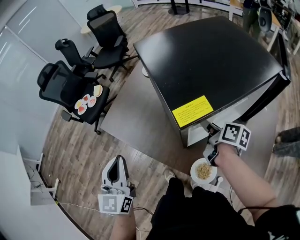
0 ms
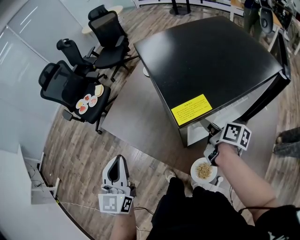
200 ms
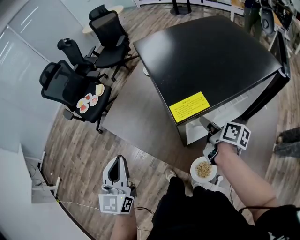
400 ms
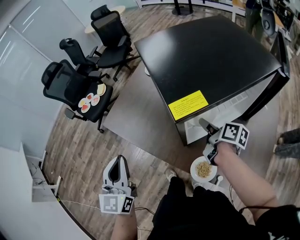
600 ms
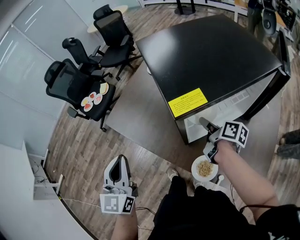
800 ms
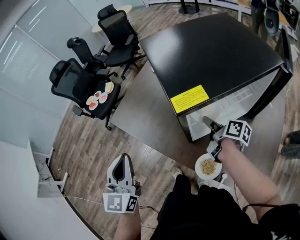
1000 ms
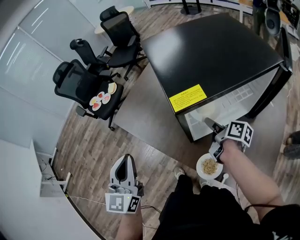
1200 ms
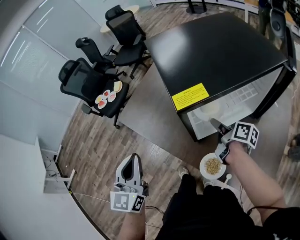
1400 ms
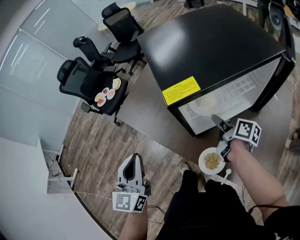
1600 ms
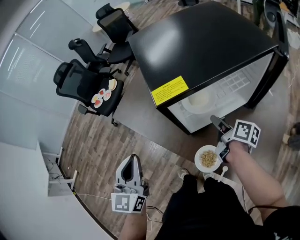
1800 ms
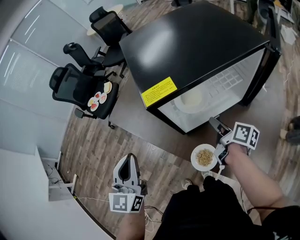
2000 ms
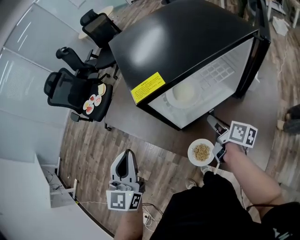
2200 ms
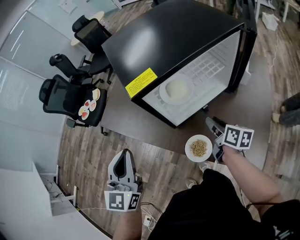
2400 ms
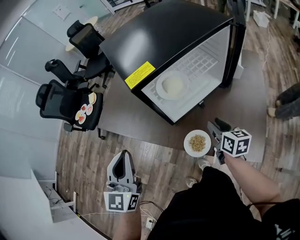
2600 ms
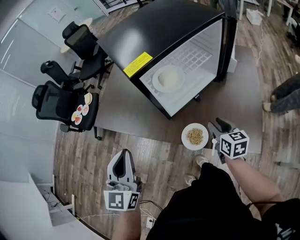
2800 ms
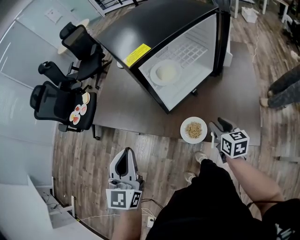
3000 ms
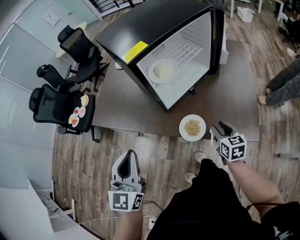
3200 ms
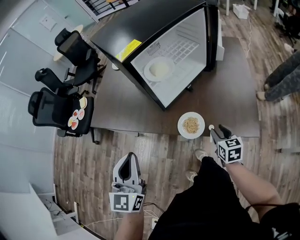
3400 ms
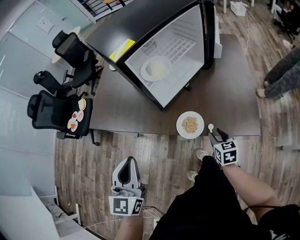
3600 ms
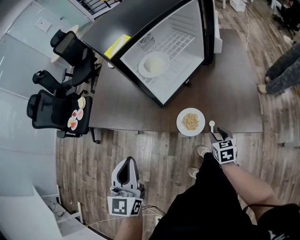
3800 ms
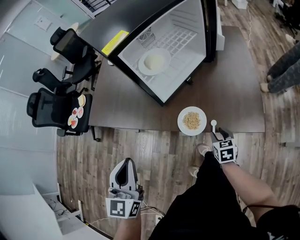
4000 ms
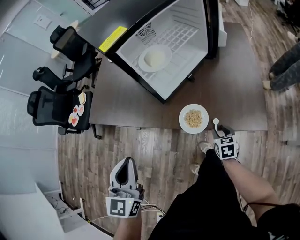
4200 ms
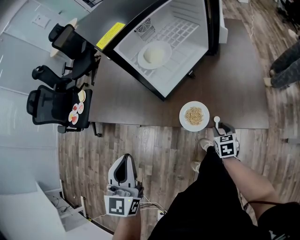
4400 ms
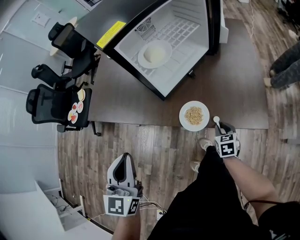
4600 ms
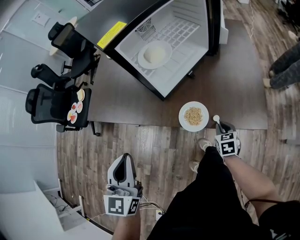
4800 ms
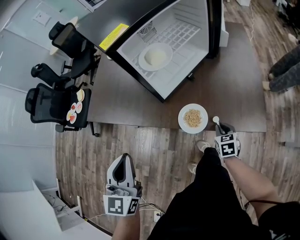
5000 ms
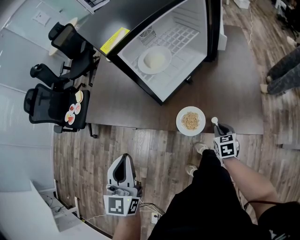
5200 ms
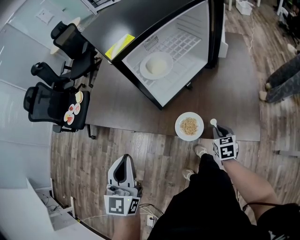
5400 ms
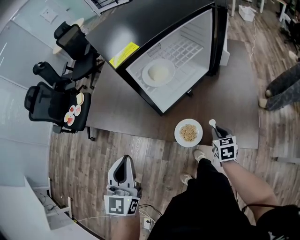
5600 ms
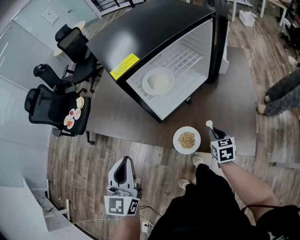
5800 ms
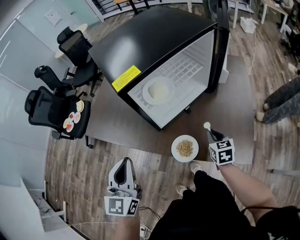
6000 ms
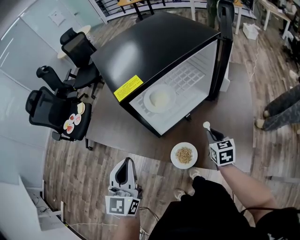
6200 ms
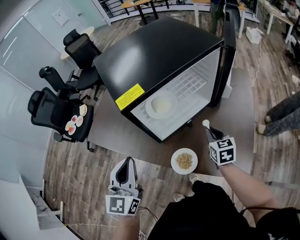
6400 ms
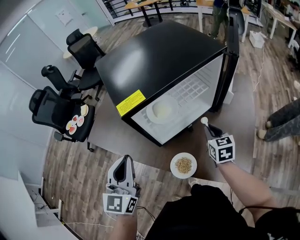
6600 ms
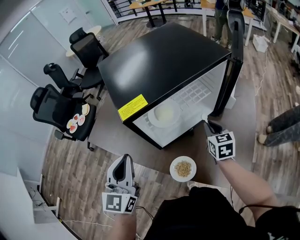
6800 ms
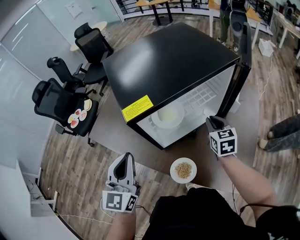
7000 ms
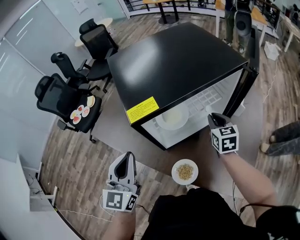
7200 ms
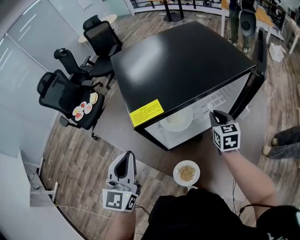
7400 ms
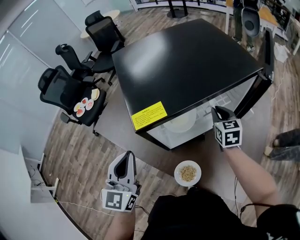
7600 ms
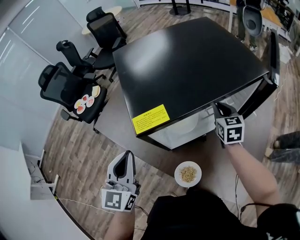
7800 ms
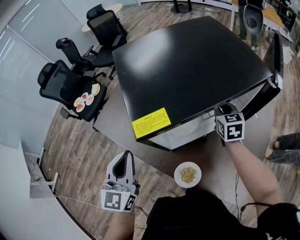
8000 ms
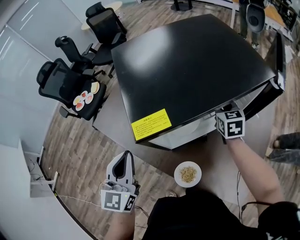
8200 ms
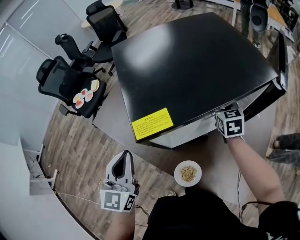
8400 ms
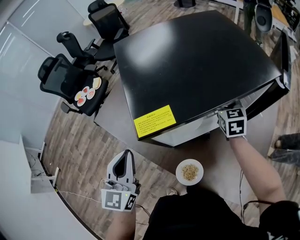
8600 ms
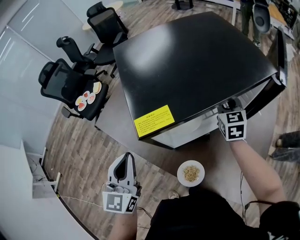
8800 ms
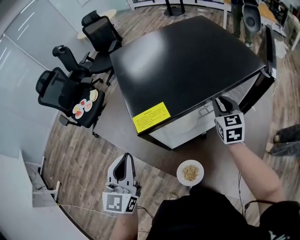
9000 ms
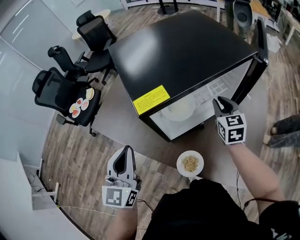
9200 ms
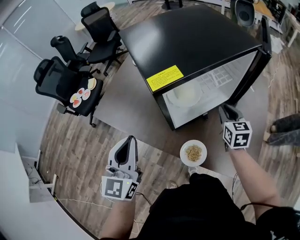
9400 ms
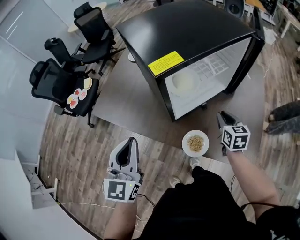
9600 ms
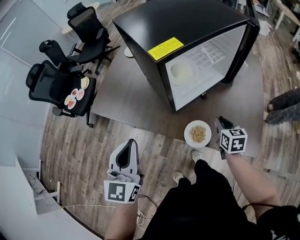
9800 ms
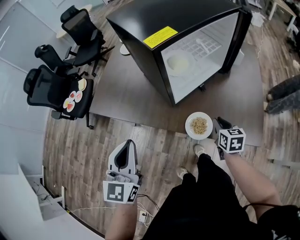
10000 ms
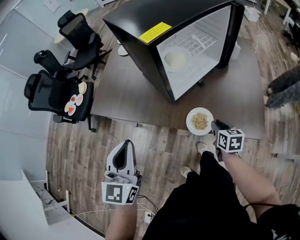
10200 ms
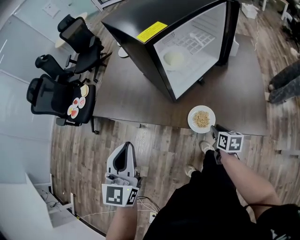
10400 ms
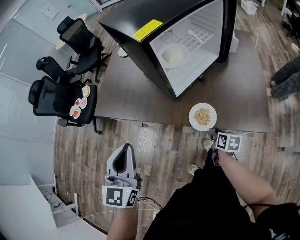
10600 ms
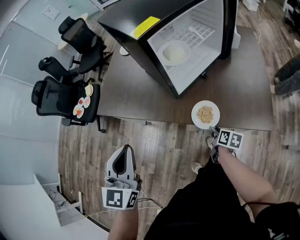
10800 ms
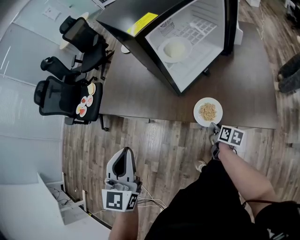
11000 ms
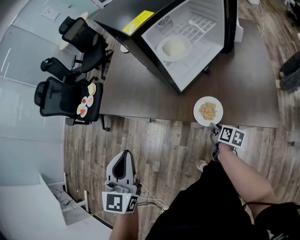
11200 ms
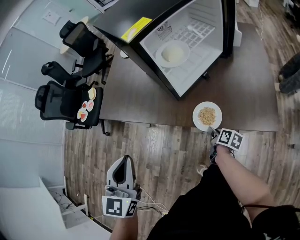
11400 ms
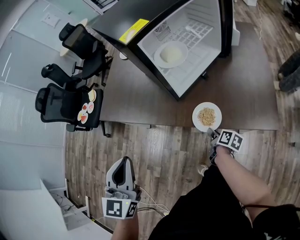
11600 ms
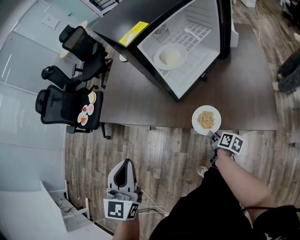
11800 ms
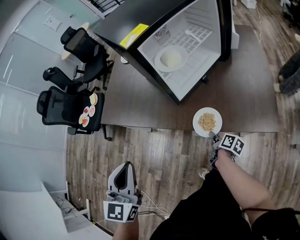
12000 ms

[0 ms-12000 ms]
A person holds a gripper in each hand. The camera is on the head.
0 ms to 1600 ms: The left gripper heads backward, covering about 5 cm, while the right gripper shifts by roughly 5 cm.
1600 ms to 3000 ms: The left gripper moves backward, roughly 10 cm. Meanwhile the right gripper goes approximately 20 cm backward, and swivels approximately 50 degrees.
3000 ms to 4400 ms: The right gripper travels downward and backward by about 20 cm, and swivels approximately 20 degrees. The left gripper heads downward, covering roughly 5 cm.
4400 ms to 6000 ms: The right gripper travels upward and forward by approximately 20 cm, and closes, while the left gripper shifts about 10 cm forward.
6000 ms to 7600 ms: The right gripper shifts approximately 30 cm forward and upward. Meanwhile the left gripper heads forward, covering approximately 10 cm.
7600 ms to 9000 ms: The grippers make only small movements.
9000 ms to 10400 ms: The right gripper moves backward and downward, roughly 40 cm, and twists some 40 degrees clockwise, seen from behind; the left gripper heads backward, covering approximately 15 cm.
10400 ms to 12000 ms: The right gripper goes roughly 10 cm downward, and rolls clockwise, seen from behind, by about 40 degrees.

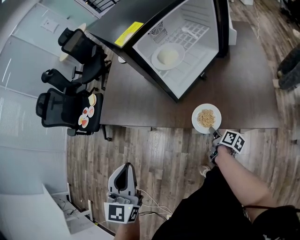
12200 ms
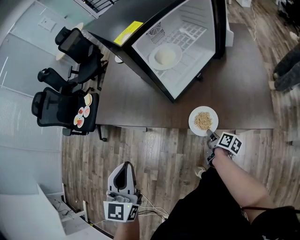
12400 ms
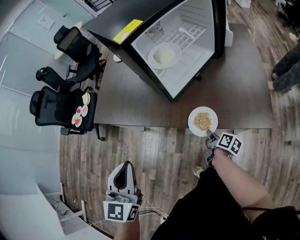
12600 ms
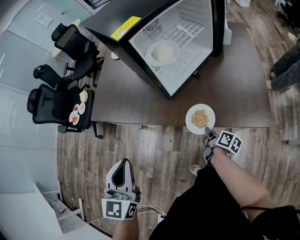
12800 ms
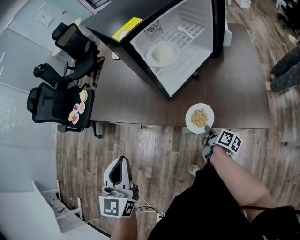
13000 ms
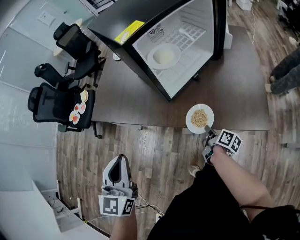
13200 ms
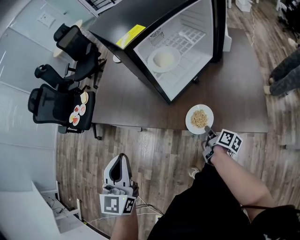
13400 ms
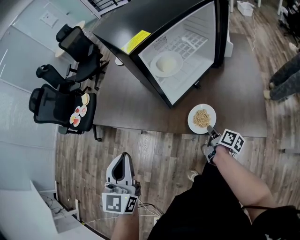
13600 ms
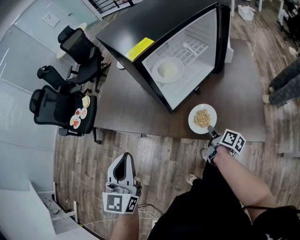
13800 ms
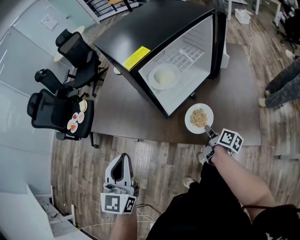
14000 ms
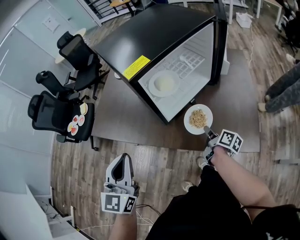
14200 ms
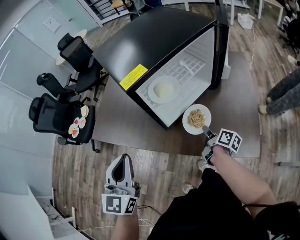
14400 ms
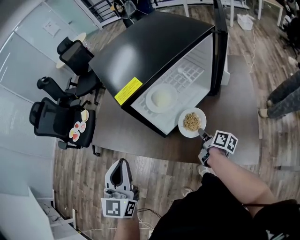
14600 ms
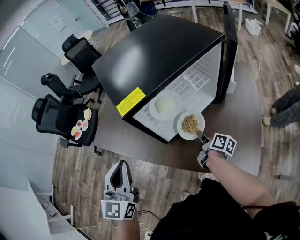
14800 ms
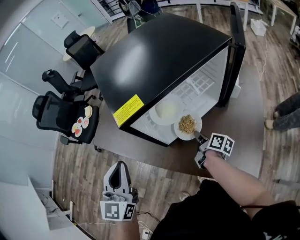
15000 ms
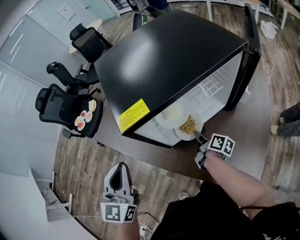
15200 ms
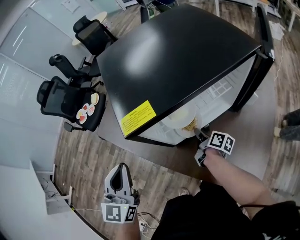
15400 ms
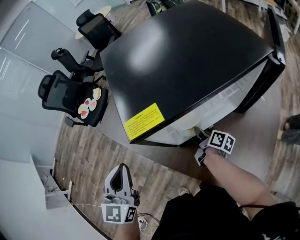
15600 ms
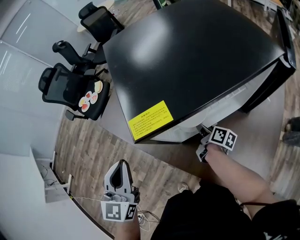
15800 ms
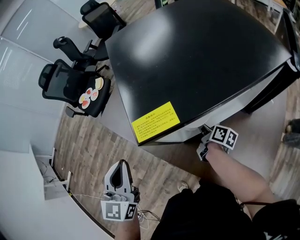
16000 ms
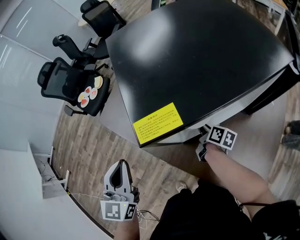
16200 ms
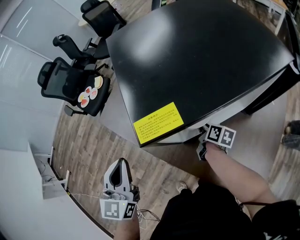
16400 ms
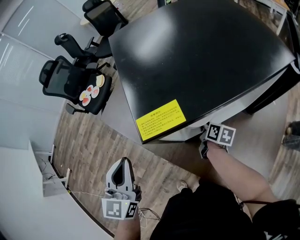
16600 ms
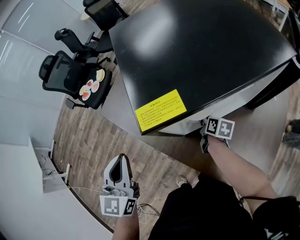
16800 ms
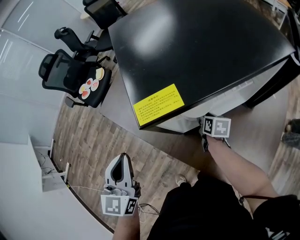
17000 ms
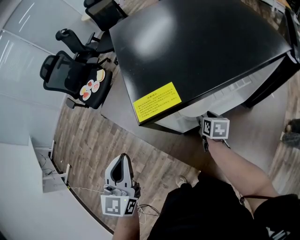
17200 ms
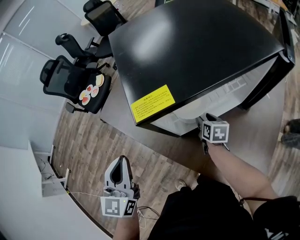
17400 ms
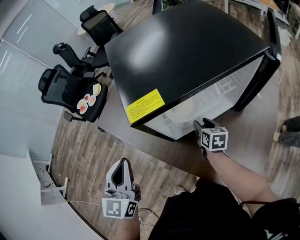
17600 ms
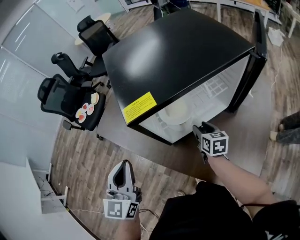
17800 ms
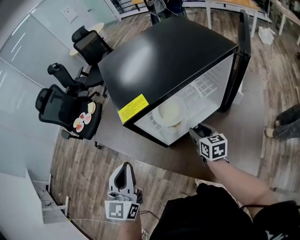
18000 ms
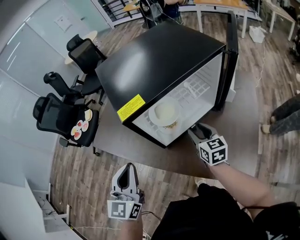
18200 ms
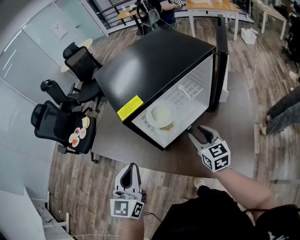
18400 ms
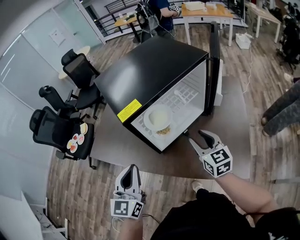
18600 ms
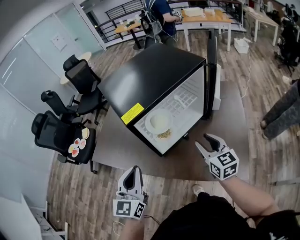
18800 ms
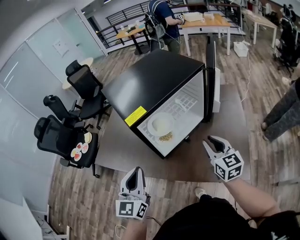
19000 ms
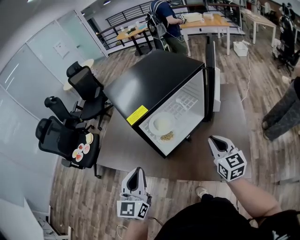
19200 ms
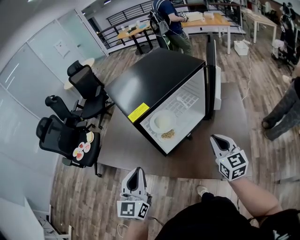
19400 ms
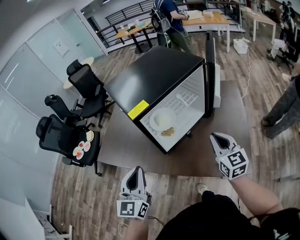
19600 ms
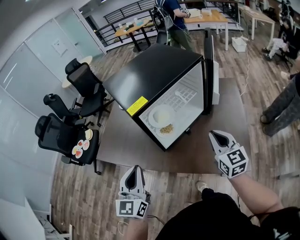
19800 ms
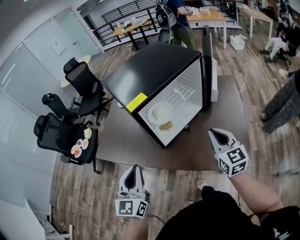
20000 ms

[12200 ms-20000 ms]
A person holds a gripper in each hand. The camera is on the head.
12200 ms to 13800 ms: The left gripper ends up some 5 cm from where it was. Meanwhile the right gripper goes approximately 10 cm upward, and closes.
13800 ms to 15400 ms: The right gripper is displaced forward by some 25 cm, and turns by about 20 degrees, while the left gripper heads forward and to the right, covering about 15 cm.
15400 ms to 16800 ms: The right gripper shifts by some 5 cm, and rotates some 30 degrees.
16800 ms to 18400 ms: The left gripper shifts approximately 10 cm to the right and backward, and rotates some 20 degrees. The right gripper heads upward and backward, covering some 25 cm, swivels approximately 50 degrees, and opens.
18400 ms to 20000 ms: The left gripper is displaced backward by about 5 cm. The right gripper heads backward, upward and to the right, covering about 15 cm, and closes.

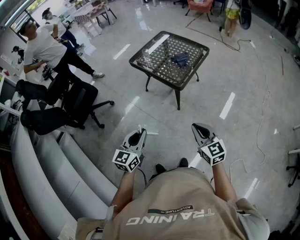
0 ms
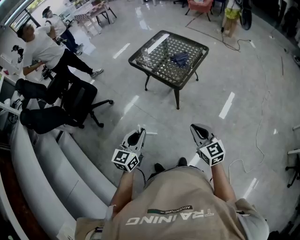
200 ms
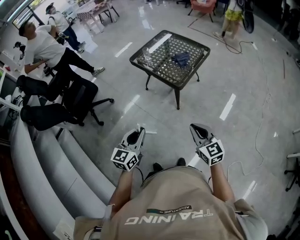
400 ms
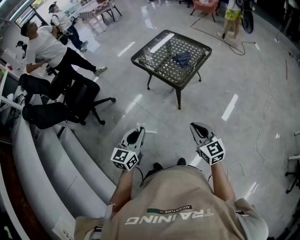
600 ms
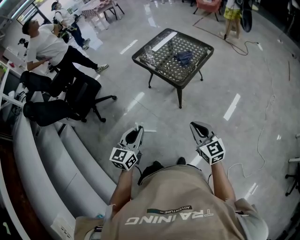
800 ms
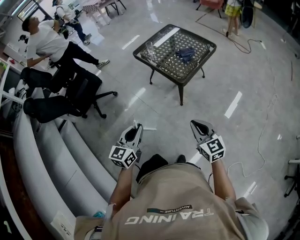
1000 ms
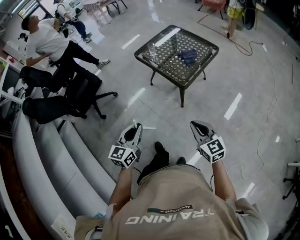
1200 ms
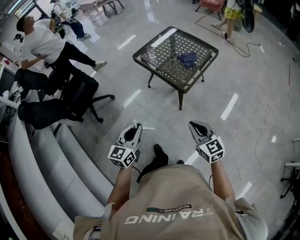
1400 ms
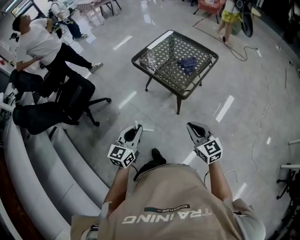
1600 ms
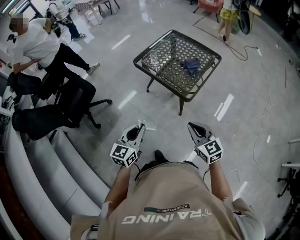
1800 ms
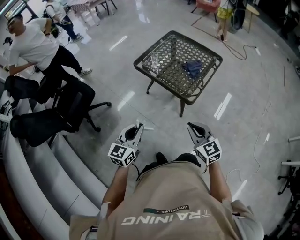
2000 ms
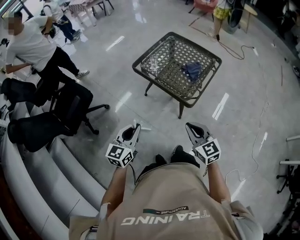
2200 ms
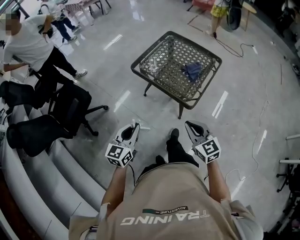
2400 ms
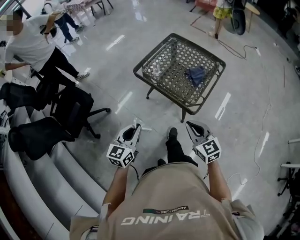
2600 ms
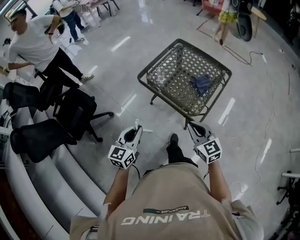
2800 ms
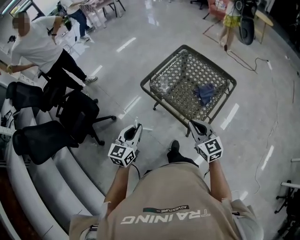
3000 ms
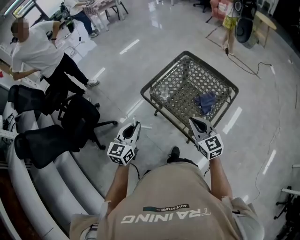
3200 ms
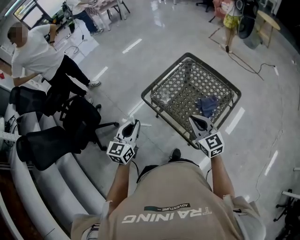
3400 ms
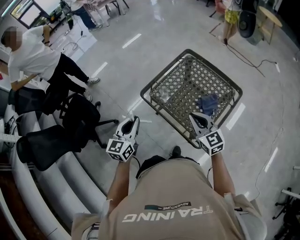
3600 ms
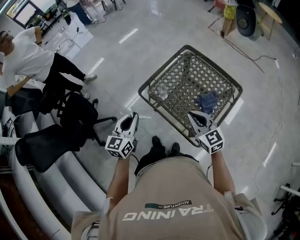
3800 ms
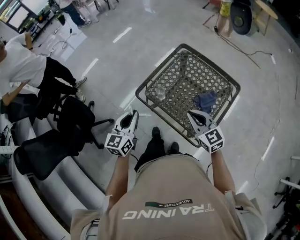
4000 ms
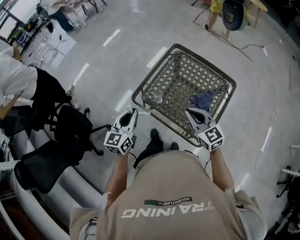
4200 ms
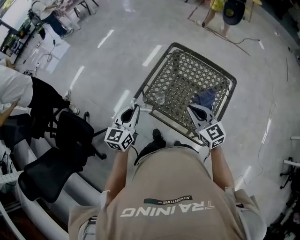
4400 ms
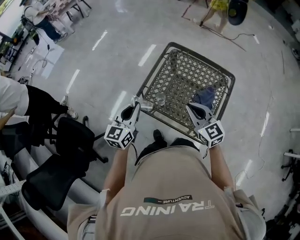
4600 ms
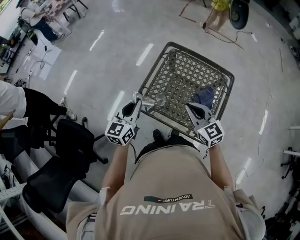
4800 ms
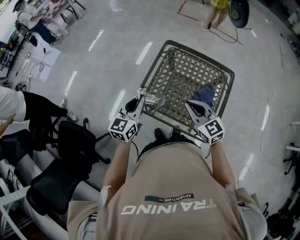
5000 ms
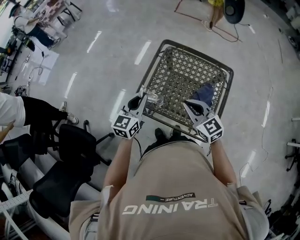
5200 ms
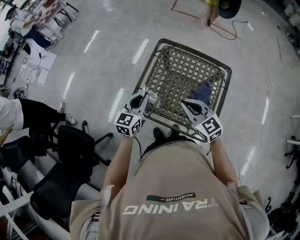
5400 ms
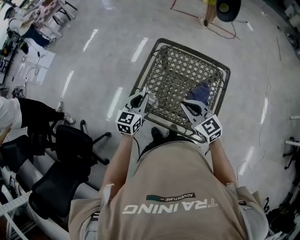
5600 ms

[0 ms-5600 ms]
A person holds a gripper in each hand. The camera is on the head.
0 ms to 1400 ms: Both grippers travel together forward, some 10 cm.
1400 ms to 2800 ms: Both grippers move forward, approximately 25 cm.
2800 ms to 4200 ms: Both grippers travel together forward, approximately 30 cm.
4200 ms to 5600 ms: The left gripper shifts about 15 cm forward and to the right, and changes its angle by approximately 20 degrees; the right gripper travels forward by roughly 5 cm.
